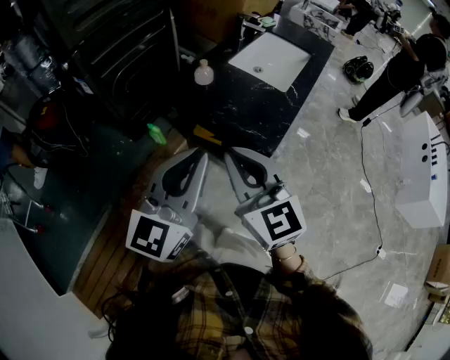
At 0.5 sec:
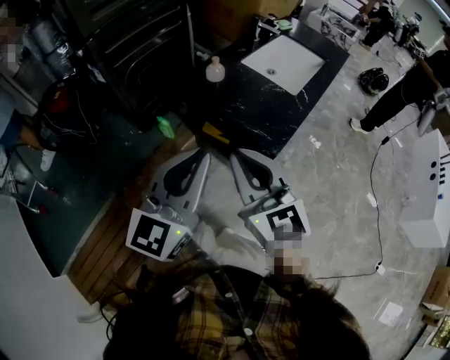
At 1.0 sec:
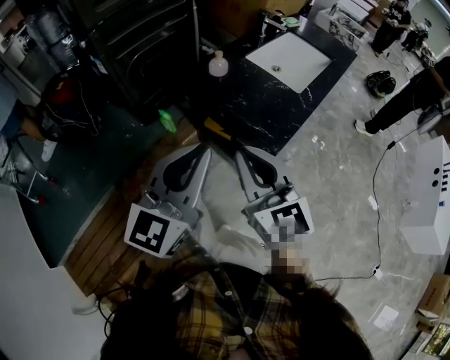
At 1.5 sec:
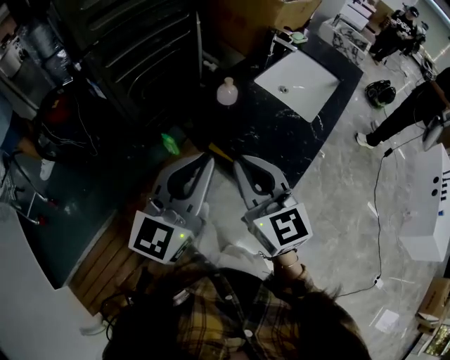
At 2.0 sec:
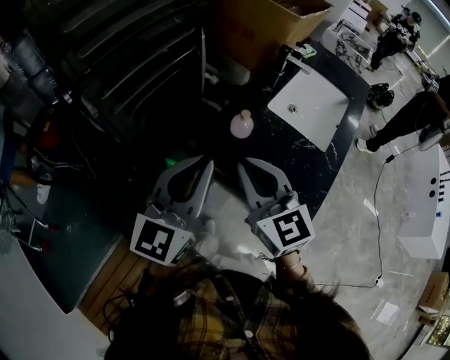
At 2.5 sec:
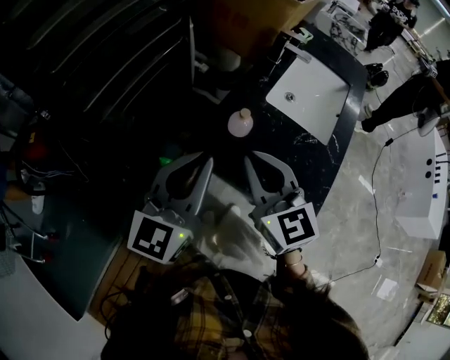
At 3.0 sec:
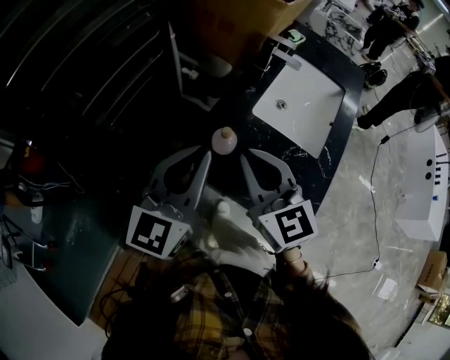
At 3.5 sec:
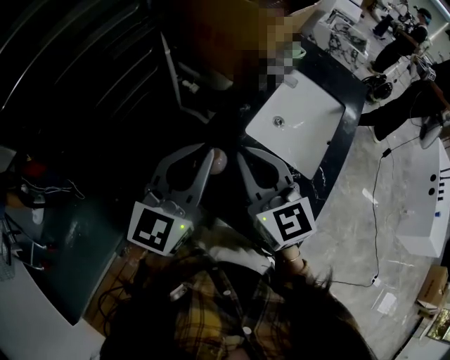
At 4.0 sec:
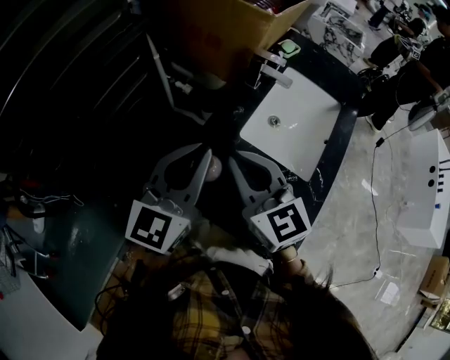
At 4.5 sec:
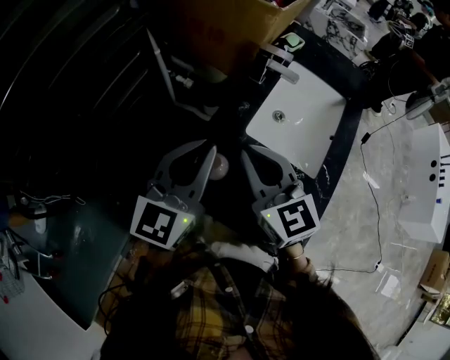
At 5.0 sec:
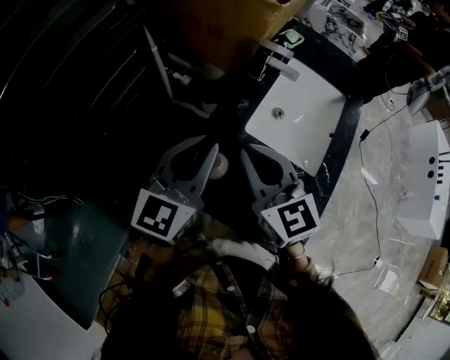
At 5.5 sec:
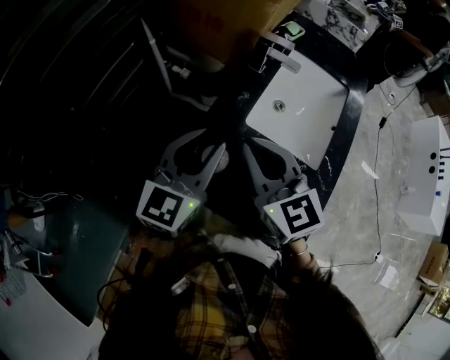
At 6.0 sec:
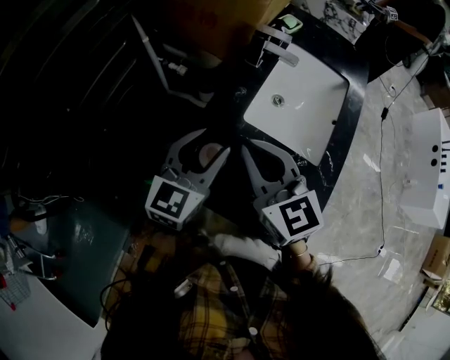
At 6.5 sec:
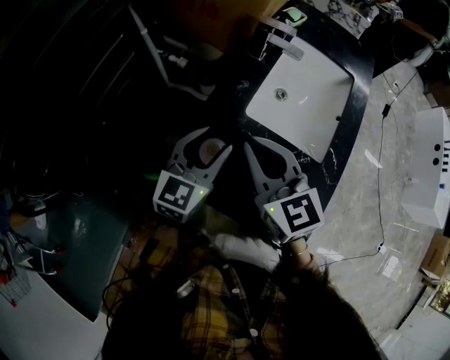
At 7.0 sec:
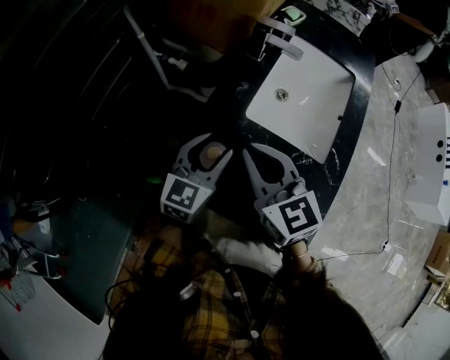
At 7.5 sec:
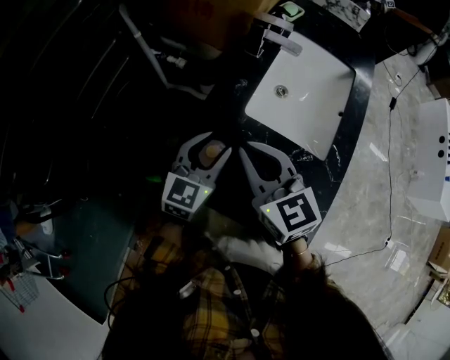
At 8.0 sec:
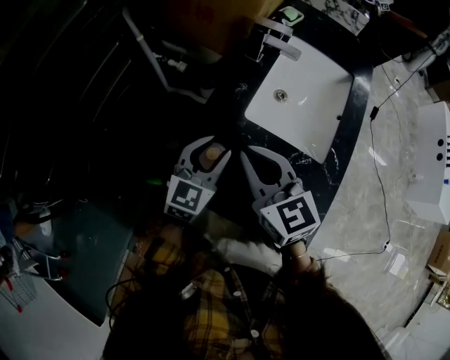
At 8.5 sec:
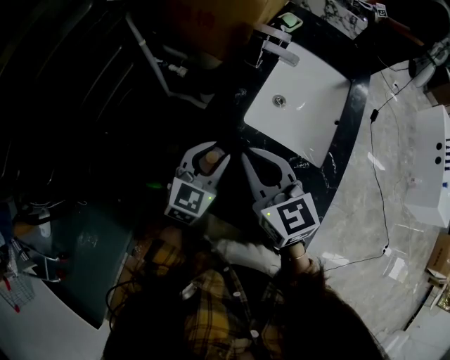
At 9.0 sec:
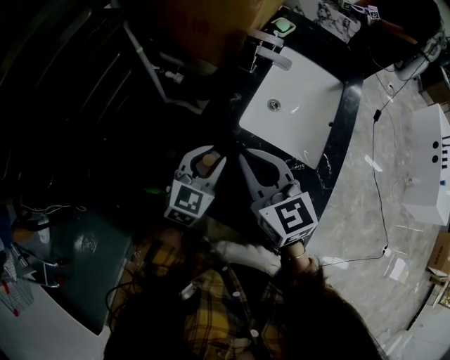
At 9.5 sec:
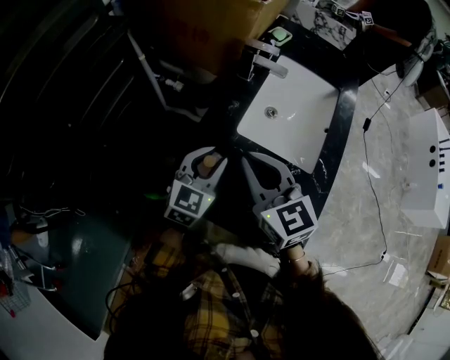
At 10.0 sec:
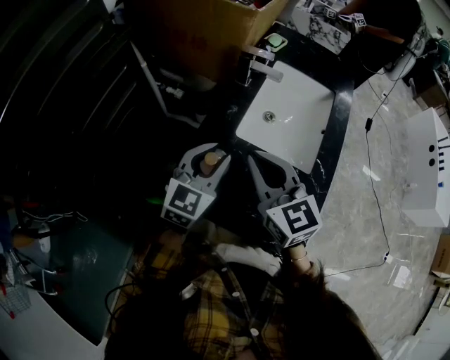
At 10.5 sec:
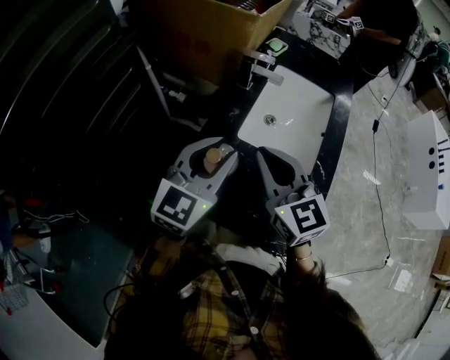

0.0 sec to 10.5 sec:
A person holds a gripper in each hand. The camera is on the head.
0.0 sec to 2.0 sec: The grippers both shift forward by some 25 cm.
2.0 sec to 4.0 sec: The two grippers go about 20 cm forward and to the right.
4.0 sec to 6.5 sec: The left gripper heads downward, covering about 15 cm, and opens up. The right gripper heads downward, covering some 5 cm.
6.5 sec to 8.5 sec: There are only small adjustments of the grippers.
8.5 sec to 10.5 sec: The right gripper moves upward, approximately 5 cm. The left gripper goes some 15 cm upward.

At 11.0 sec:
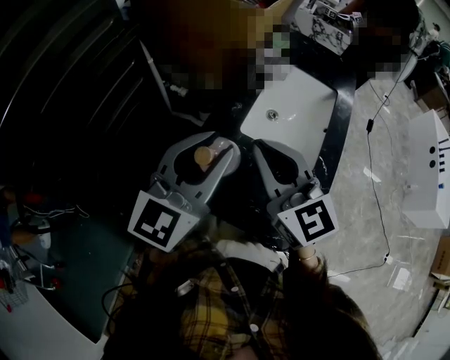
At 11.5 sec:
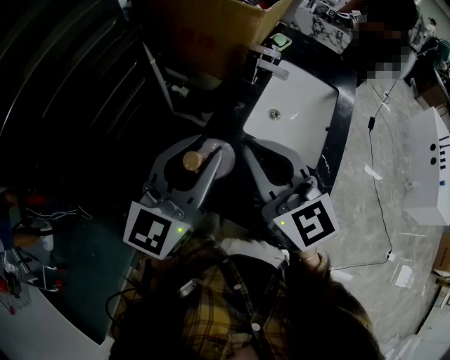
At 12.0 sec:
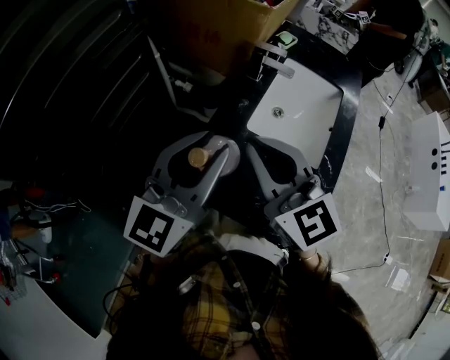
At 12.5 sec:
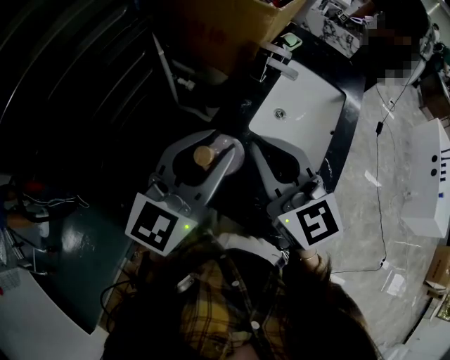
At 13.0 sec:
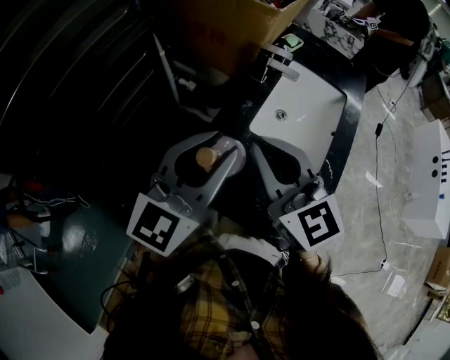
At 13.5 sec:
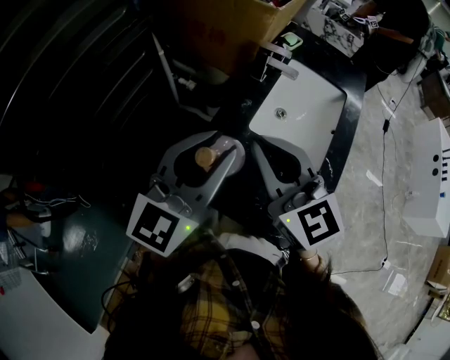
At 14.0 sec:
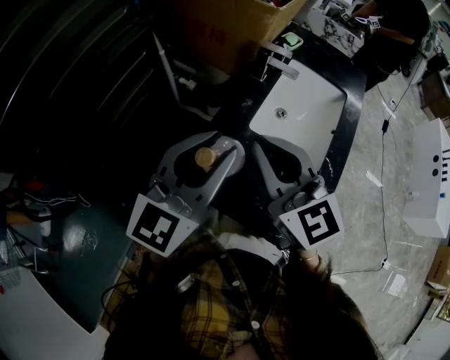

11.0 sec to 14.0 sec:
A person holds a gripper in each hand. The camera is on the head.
11.0 sec to 12.5 sec: The grippers stay close to where they were, moving slightly.
12.5 sec to 14.0 sec: Neither gripper changes place.

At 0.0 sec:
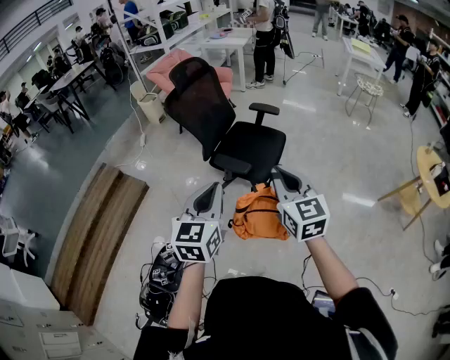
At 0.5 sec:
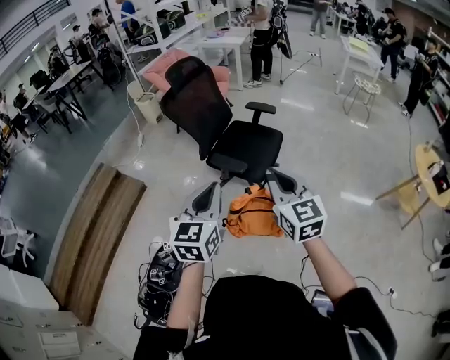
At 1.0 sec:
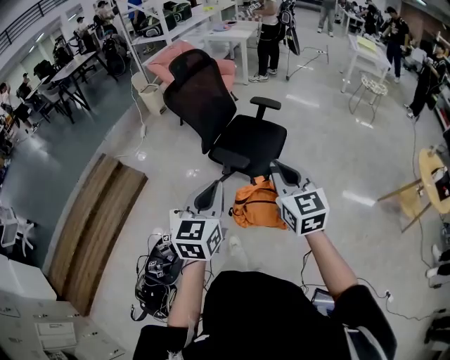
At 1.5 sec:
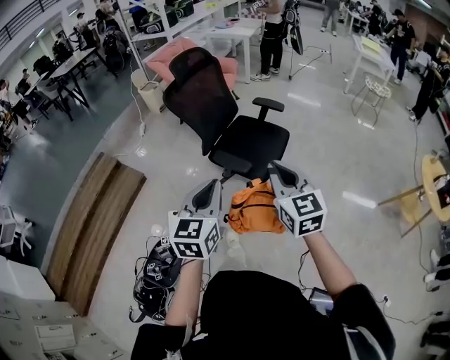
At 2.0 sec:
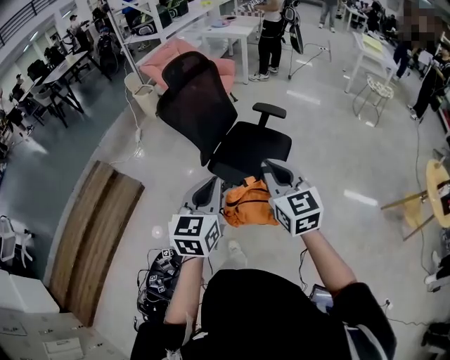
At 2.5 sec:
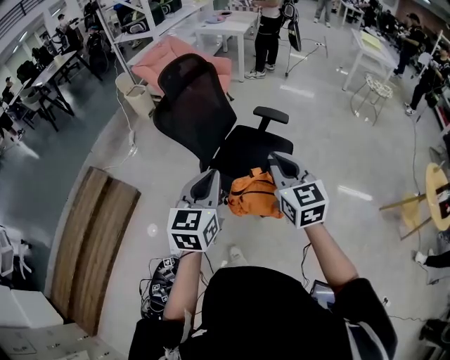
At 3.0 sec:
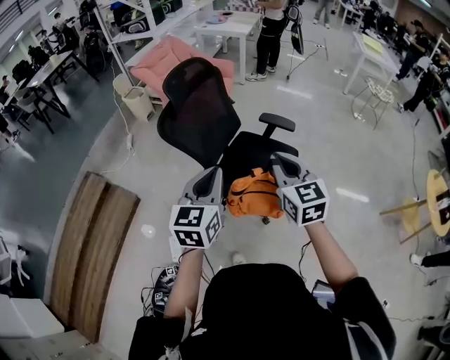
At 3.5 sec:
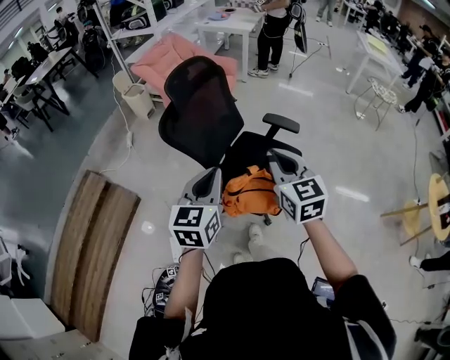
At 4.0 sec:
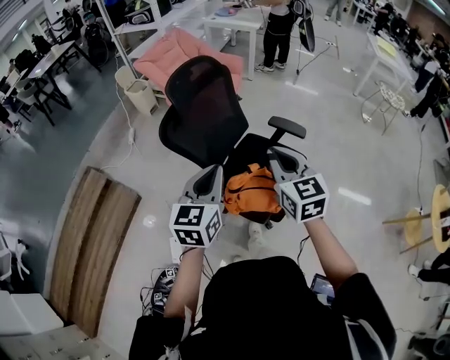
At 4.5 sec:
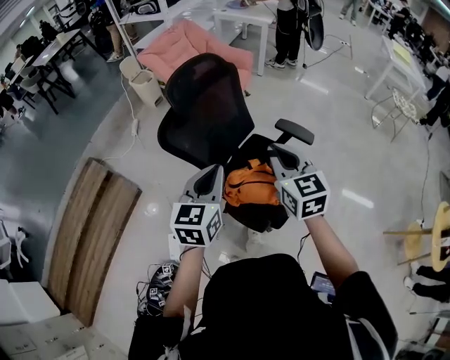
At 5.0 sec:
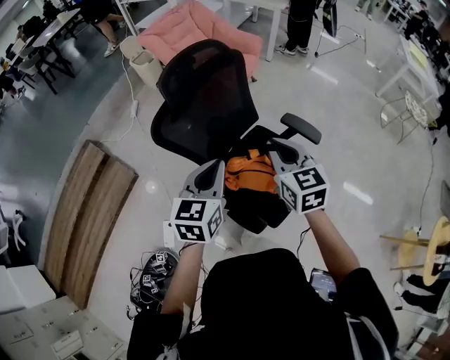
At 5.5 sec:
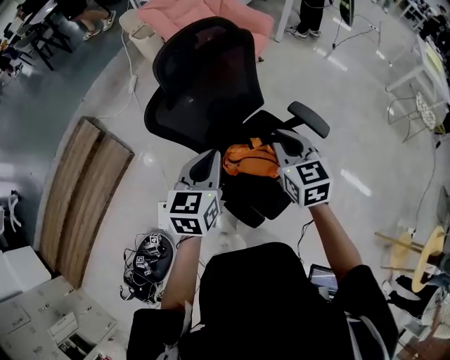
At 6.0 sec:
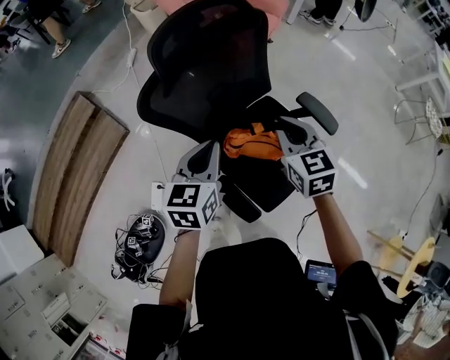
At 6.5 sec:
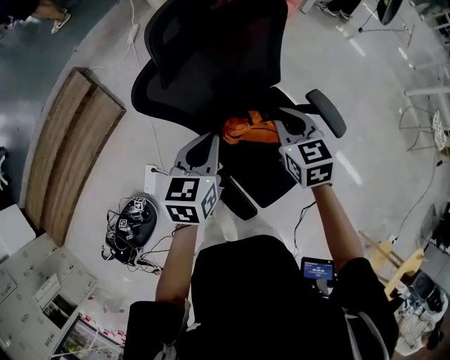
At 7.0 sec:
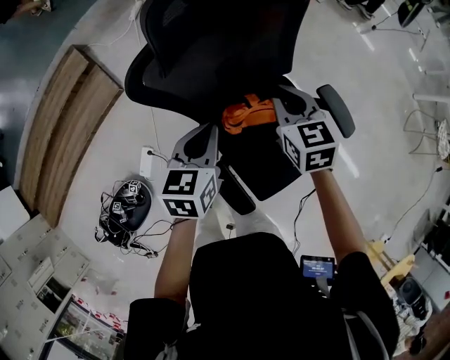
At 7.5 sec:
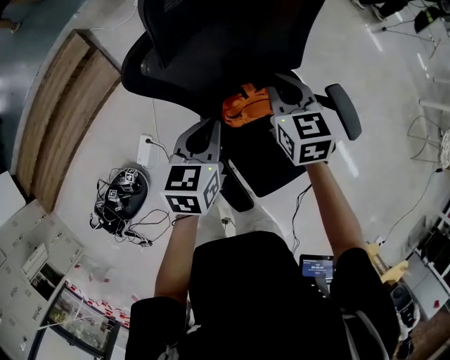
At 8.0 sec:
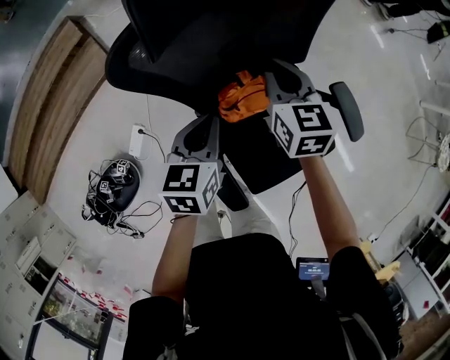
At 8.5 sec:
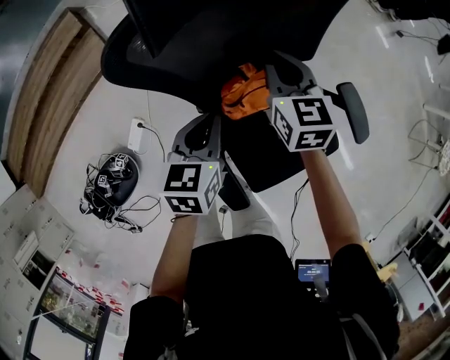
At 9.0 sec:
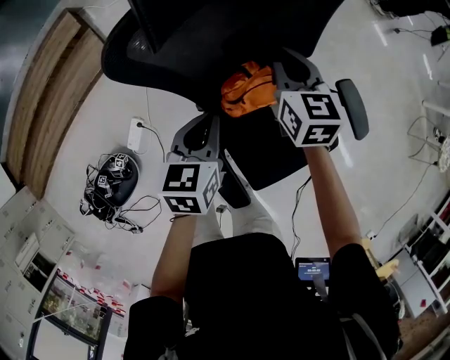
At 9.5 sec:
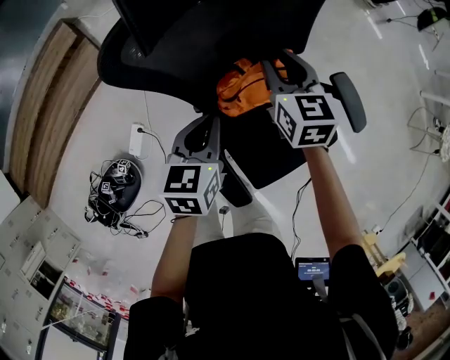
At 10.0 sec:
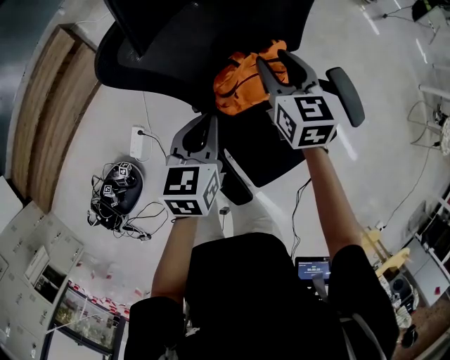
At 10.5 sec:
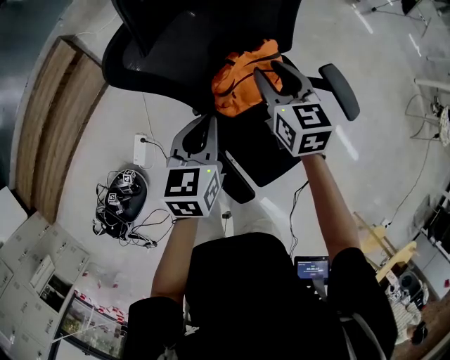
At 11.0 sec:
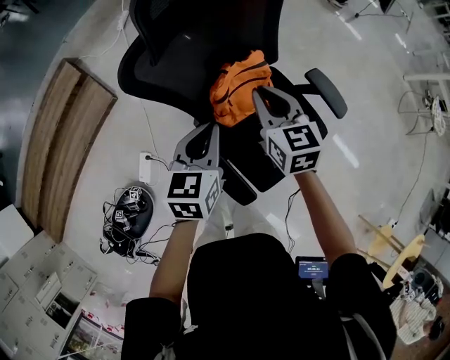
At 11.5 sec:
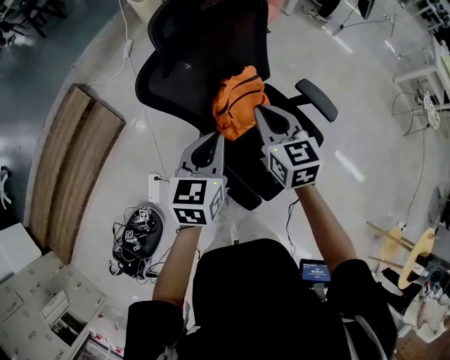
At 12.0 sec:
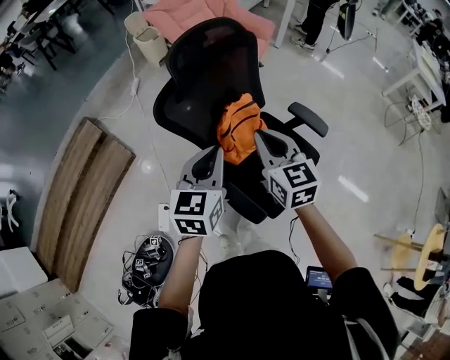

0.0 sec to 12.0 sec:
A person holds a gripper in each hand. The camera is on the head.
0.0 sec to 2.0 sec: Both grippers move forward, roughly 20 cm.
2.0 sec to 4.0 sec: The grippers both shift forward by approximately 30 cm.
4.0 sec to 6.0 sec: Both grippers move forward and downward, roughly 25 cm. The right gripper turns by some 20 degrees. The left gripper swivels about 20 degrees.
6.0 sec to 8.0 sec: The left gripper moves downward and forward, some 15 cm; the right gripper heads forward, downward and to the left, covering roughly 20 cm.
8.0 sec to 10.0 sec: The right gripper opens its fingers.
10.0 sec to 12.0 sec: Both grippers move upward and backward, about 30 cm. The left gripper rotates roughly 30 degrees, while the right gripper closes.

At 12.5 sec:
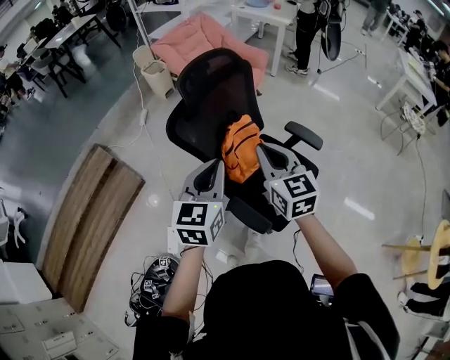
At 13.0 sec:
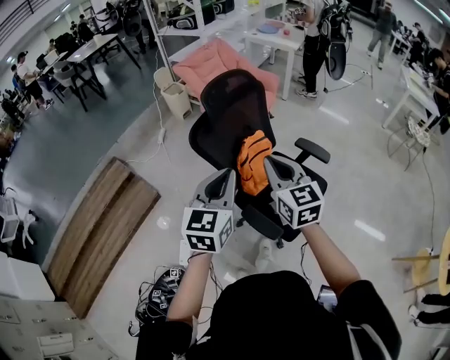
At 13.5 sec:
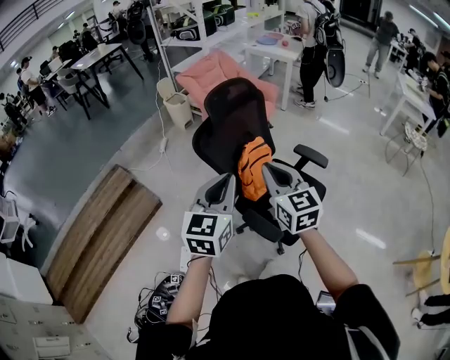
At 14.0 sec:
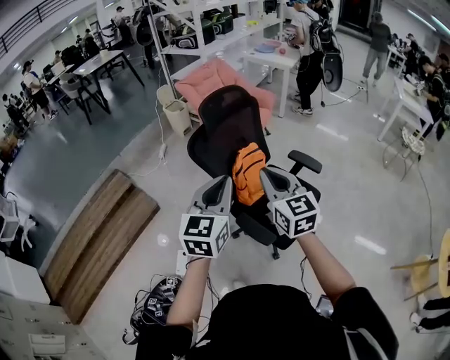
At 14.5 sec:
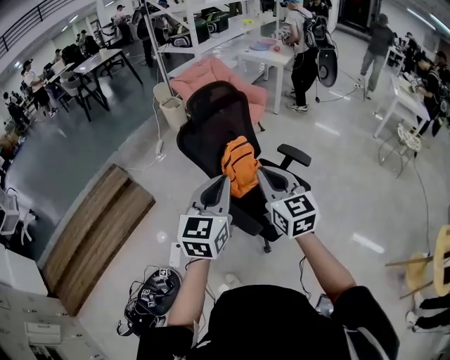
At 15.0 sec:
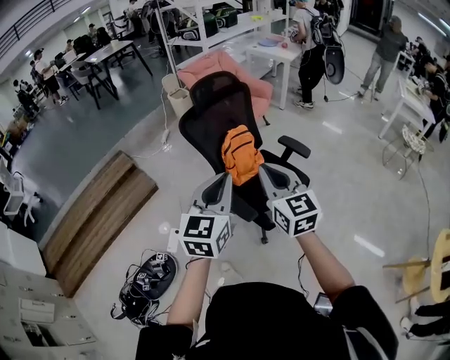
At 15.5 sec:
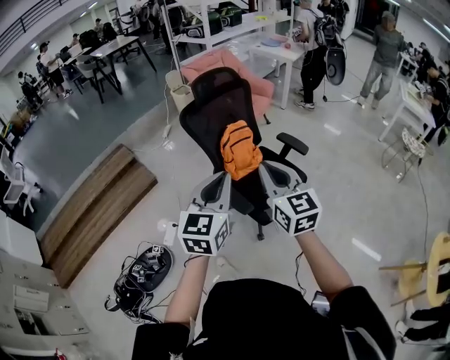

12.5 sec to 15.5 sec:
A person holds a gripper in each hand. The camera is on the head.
12.5 sec to 14.0 sec: The two grippers go some 15 cm backward and upward.
14.0 sec to 15.5 sec: Both grippers move backward and to the right, roughly 20 cm.
